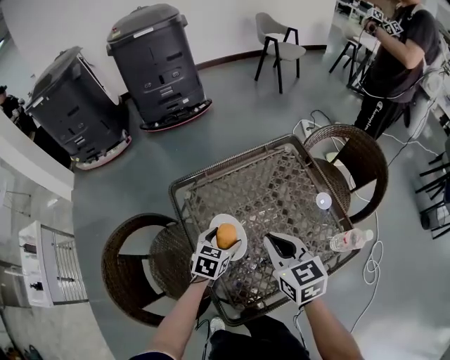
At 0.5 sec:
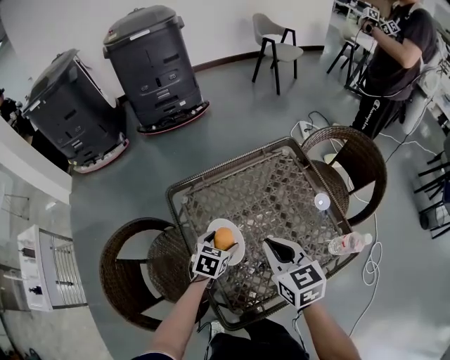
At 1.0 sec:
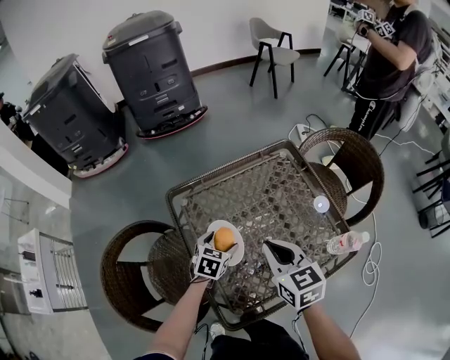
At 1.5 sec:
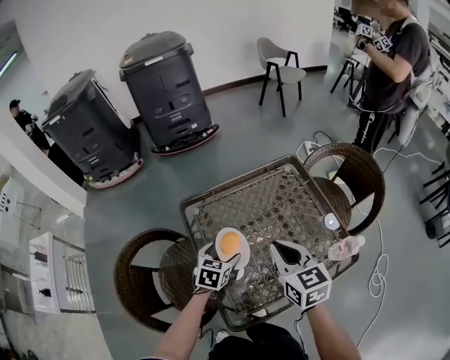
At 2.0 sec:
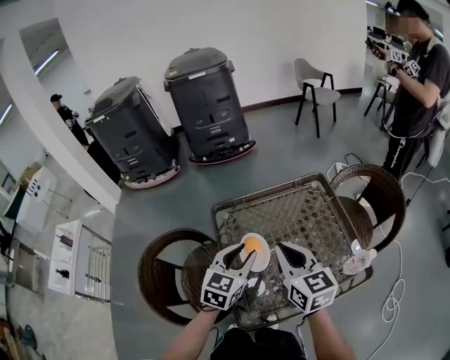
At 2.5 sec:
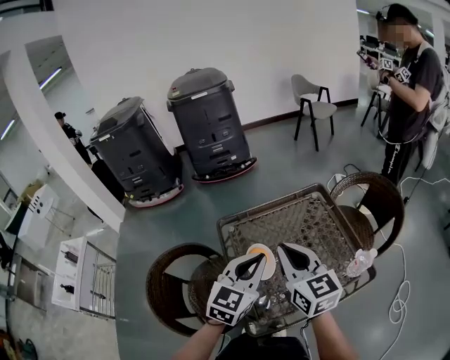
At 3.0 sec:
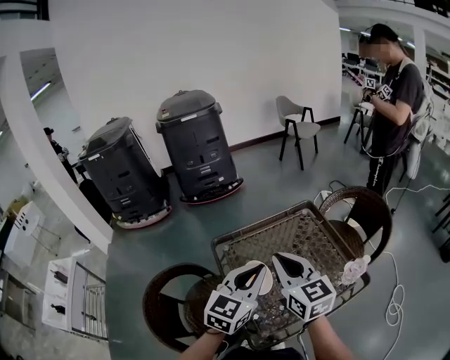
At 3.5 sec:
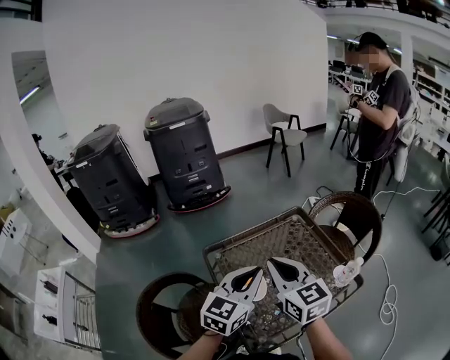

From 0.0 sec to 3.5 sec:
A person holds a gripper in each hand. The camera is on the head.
From 0.0 sec to 2.0 sec: The right gripper travels upward by about 10 cm; the left gripper moves upward, some 20 cm, swivels approximately 20 degrees, and closes up.
From 2.0 sec to 3.5 sec: The left gripper moves upward, about 10 cm, changes its angle by approximately 20 degrees, and closes up. The right gripper heads upward, covering approximately 10 cm.

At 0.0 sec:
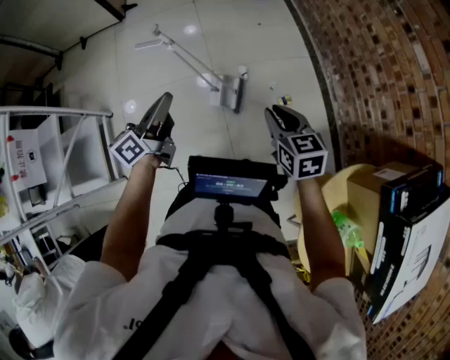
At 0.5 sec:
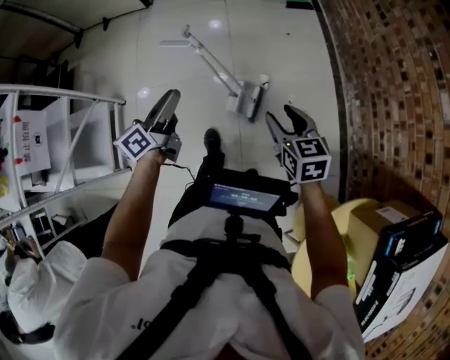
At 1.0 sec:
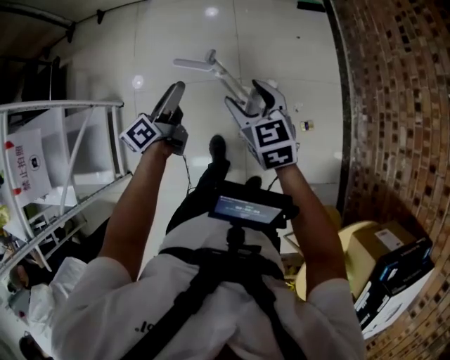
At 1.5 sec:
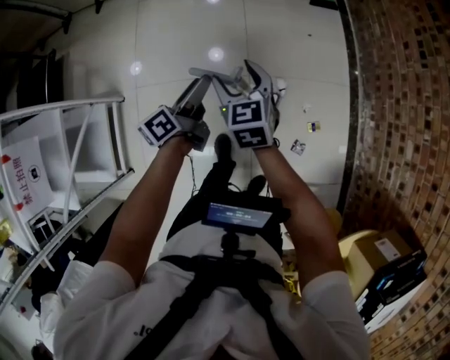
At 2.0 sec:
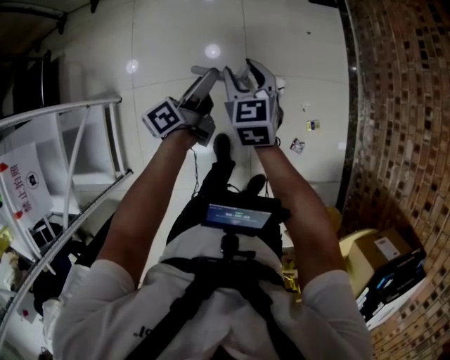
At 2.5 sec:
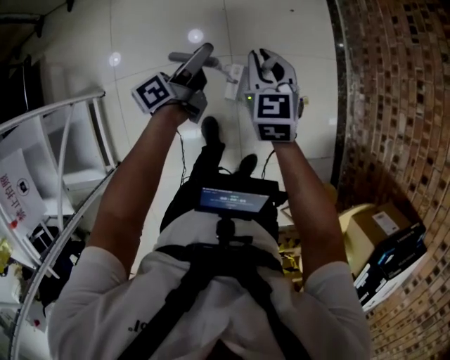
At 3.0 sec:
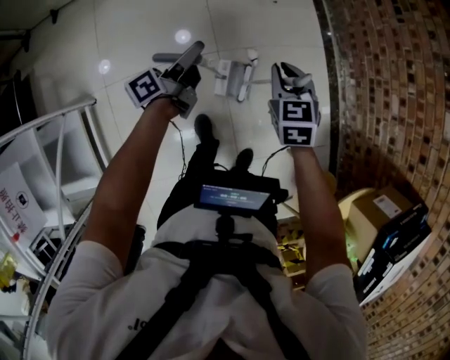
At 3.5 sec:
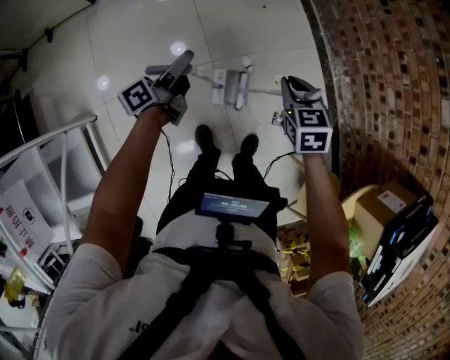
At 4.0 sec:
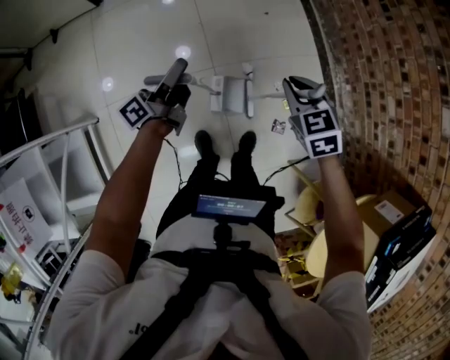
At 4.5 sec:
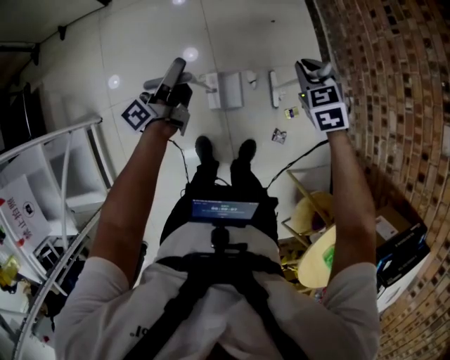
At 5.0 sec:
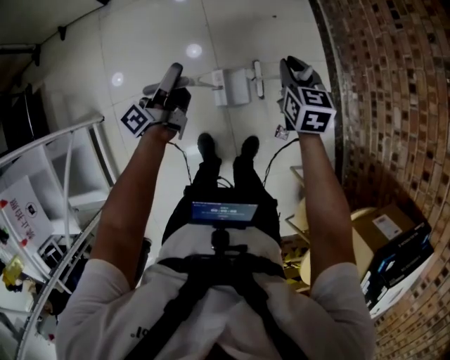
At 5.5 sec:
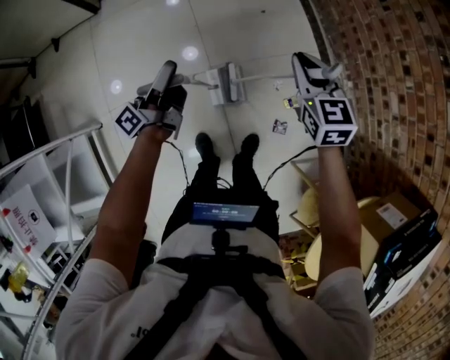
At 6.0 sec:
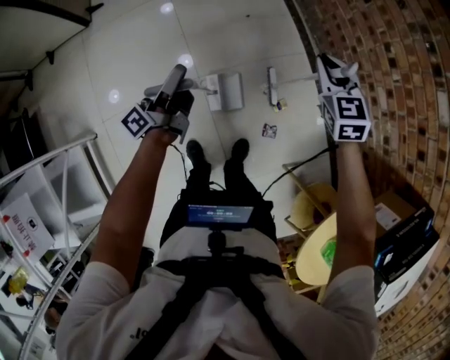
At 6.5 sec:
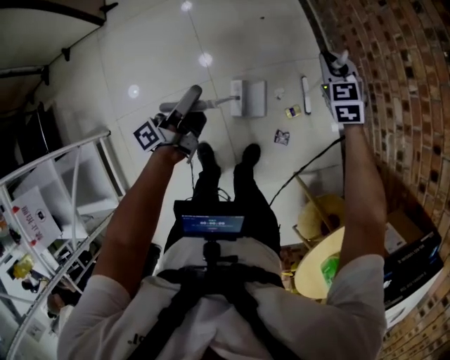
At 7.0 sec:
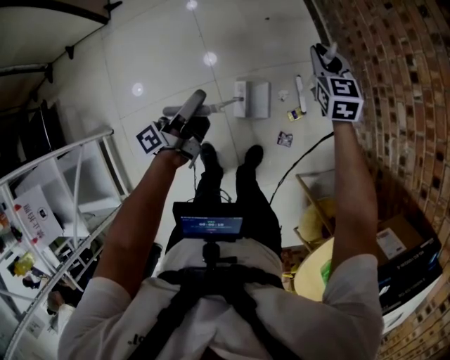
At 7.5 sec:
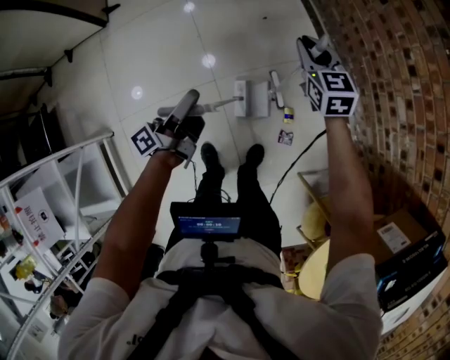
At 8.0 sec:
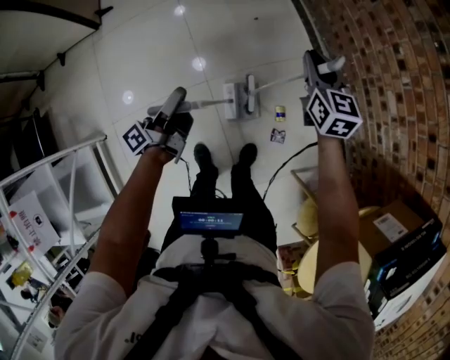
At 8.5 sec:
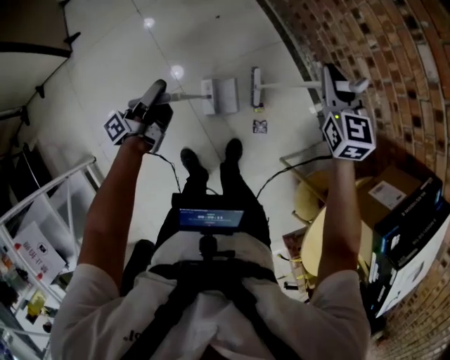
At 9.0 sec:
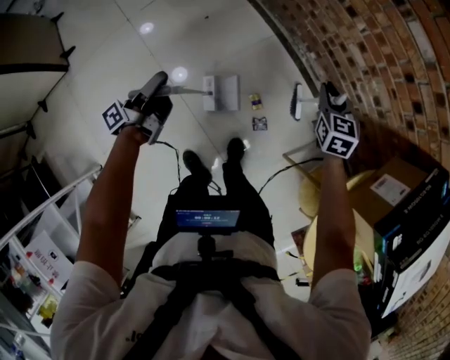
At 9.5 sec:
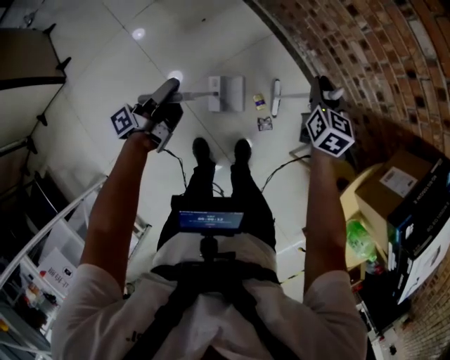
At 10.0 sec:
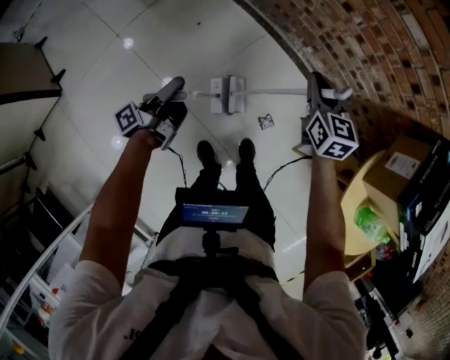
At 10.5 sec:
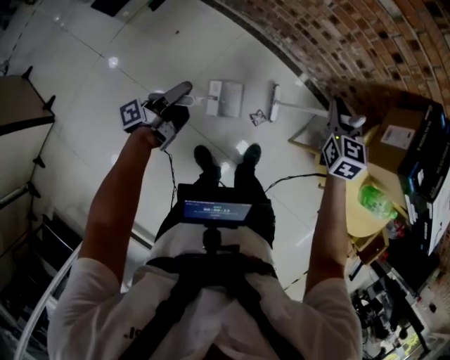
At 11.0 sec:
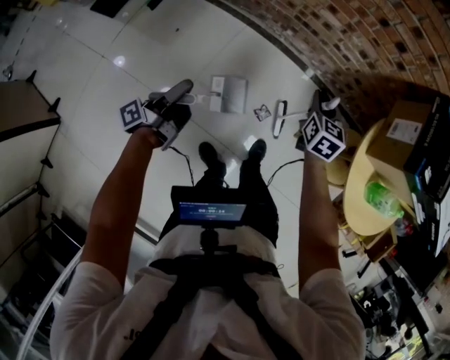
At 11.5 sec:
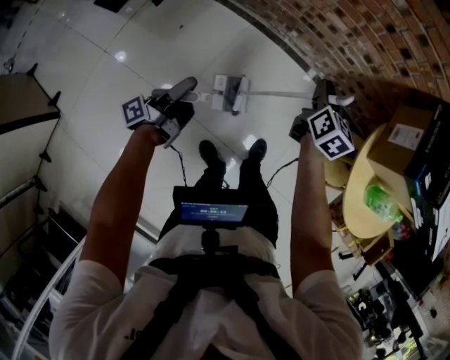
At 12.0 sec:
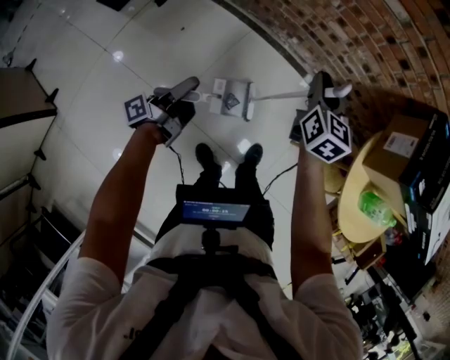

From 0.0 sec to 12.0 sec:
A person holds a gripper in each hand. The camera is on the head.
From 0.0 sec to 2.0 sec: The right gripper goes some 40 cm forward and to the left, and opens and closes again. The left gripper is displaced forward by about 25 cm, swivels approximately 30 degrees, and opens.
From 2.0 sec to 4.0 sec: The right gripper heads to the right, covering about 25 cm, and closes its fingers, while the left gripper moves to the right, roughly 5 cm, and closes its fingers.
From 4.0 sec to 6.0 sec: The left gripper heads to the right, covering approximately 10 cm. Meanwhile the right gripper shifts about 20 cm to the right and forward.
From 6.0 sec to 8.0 sec: The left gripper changes place by about 5 cm. The right gripper travels downward and back again, some 10 cm each way, and rotates approximately 30 degrees.
From 8.0 sec to 10.0 sec: The left gripper changes place by approximately 15 cm, and changes its angle by roughly 30 degrees; the right gripper goes up and down, some 10 cm each way, reversing 2 times, and swivels about 30 degrees.
From 10.0 sec to 12.0 sec: The two grippers go approximately 5 cm to the right. The right gripper changes its angle by some 20 degrees.

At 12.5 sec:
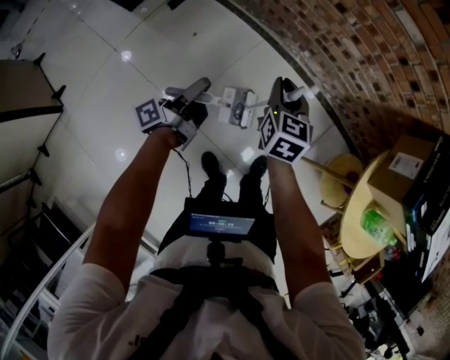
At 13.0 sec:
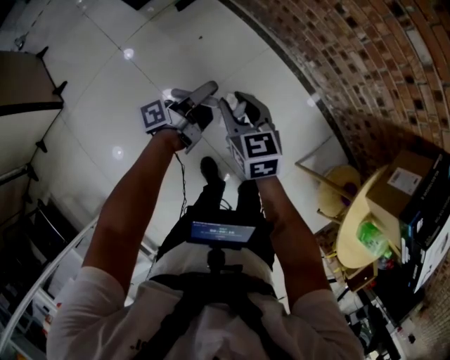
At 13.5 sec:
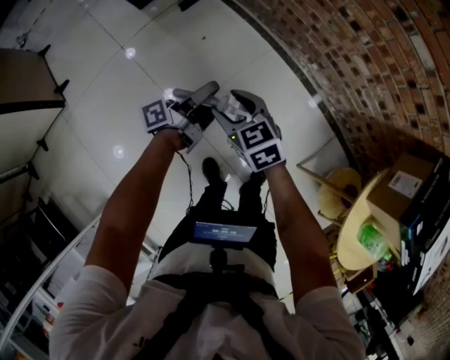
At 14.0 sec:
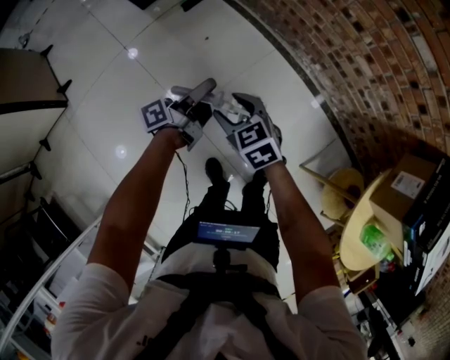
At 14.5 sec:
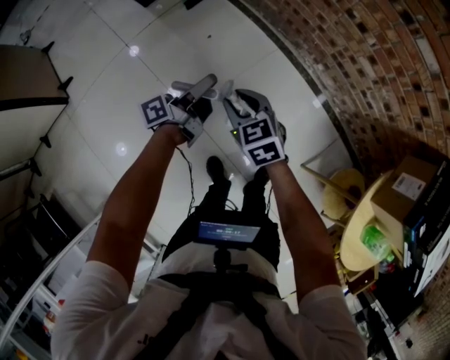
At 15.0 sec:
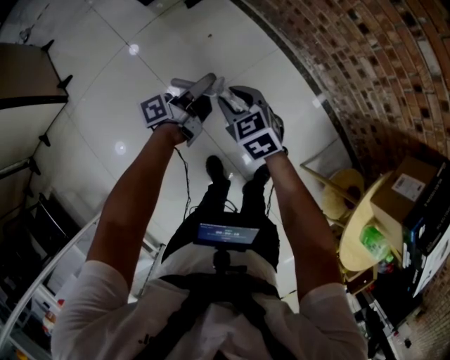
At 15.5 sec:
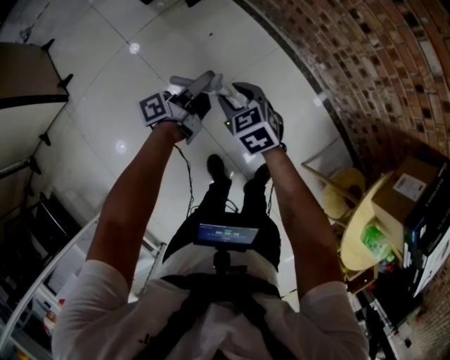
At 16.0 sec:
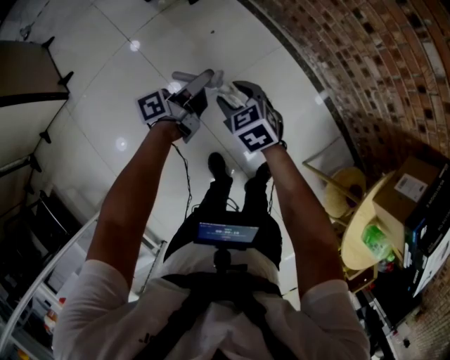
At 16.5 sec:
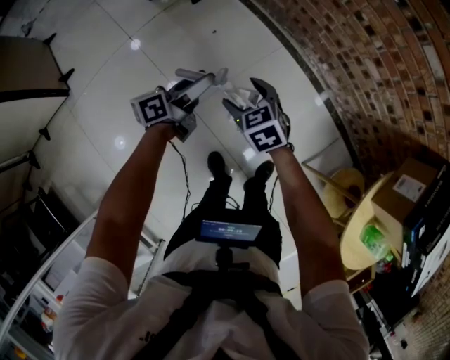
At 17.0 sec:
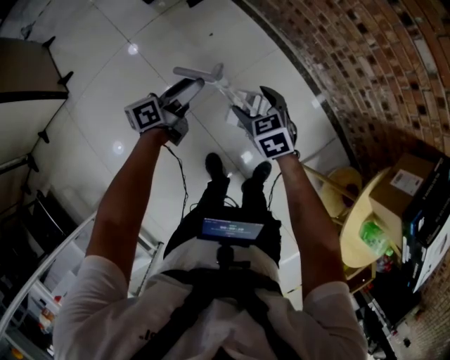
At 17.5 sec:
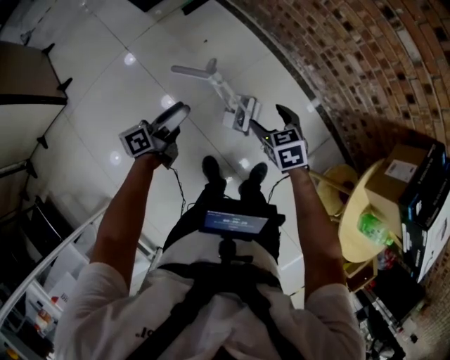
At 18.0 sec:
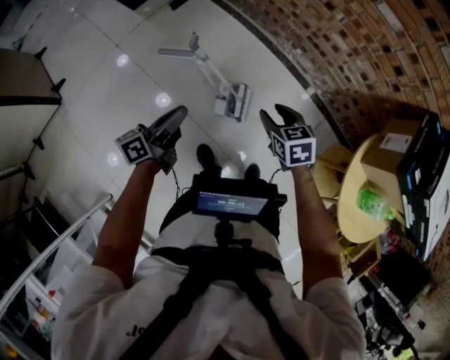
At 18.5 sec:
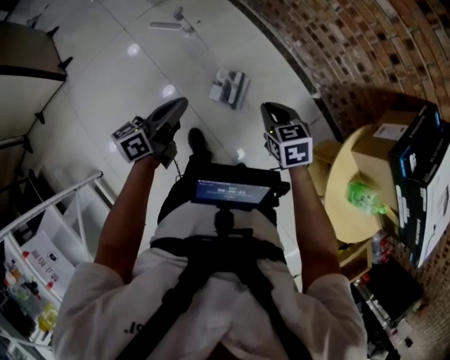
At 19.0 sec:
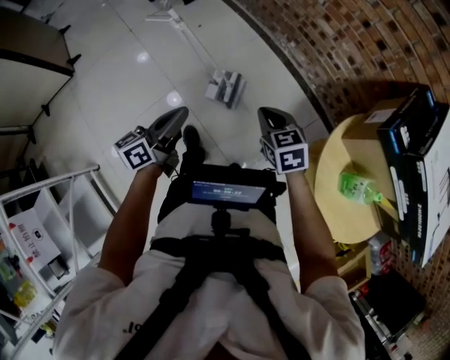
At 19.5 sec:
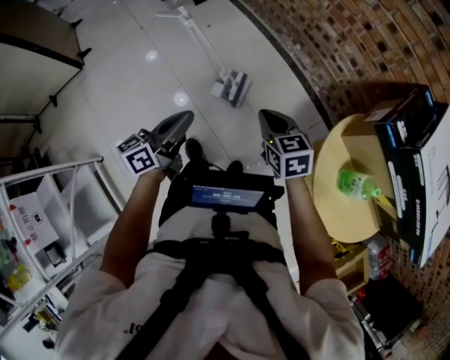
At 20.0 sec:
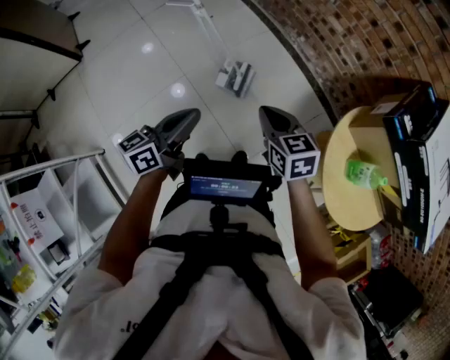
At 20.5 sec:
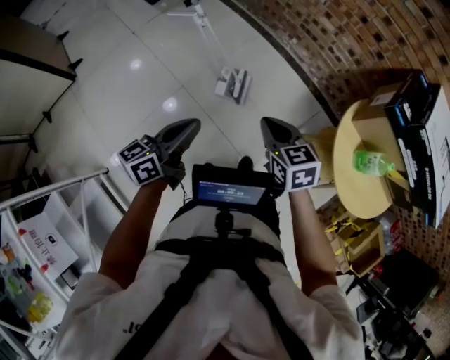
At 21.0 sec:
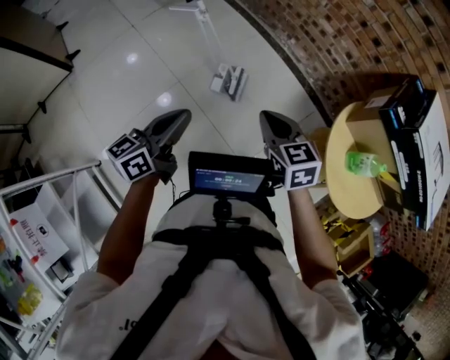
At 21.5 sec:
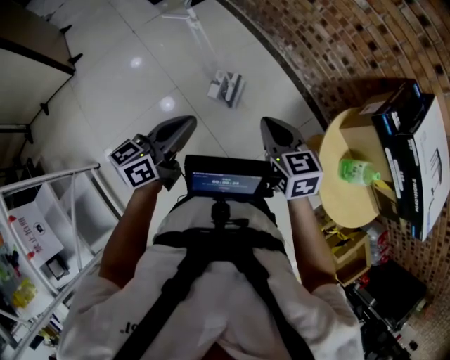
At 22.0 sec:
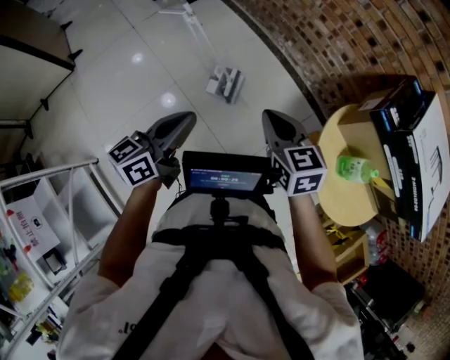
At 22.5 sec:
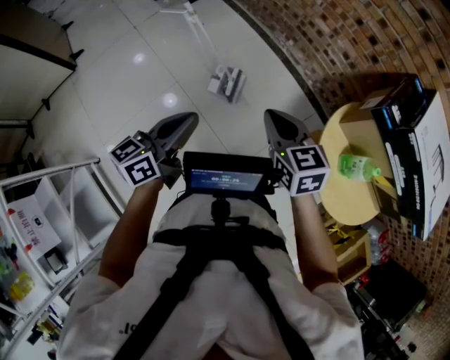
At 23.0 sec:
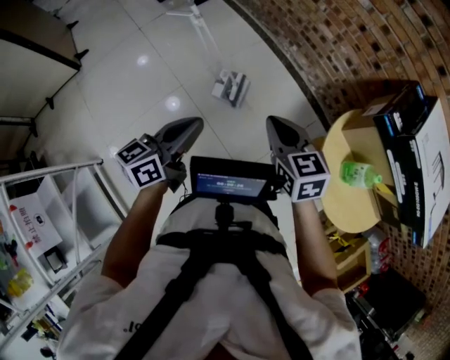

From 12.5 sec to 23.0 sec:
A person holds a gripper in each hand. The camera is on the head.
From 12.5 sec to 14.5 sec: The right gripper goes roughly 20 cm to the left, and changes its angle by roughly 50 degrees; the left gripper moves some 5 cm.
From 14.5 sec to 16.5 sec: The left gripper opens its fingers; the right gripper opens.
From 16.5 sec to 19.0 sec: The right gripper is displaced to the right and backward by roughly 40 cm, and closes, while the left gripper heads backward and to the right, covering roughly 40 cm, and closes its fingers.
From 19.0 sec to 21.0 sec: The grippers both shift backward, upward and to the left by roughly 15 cm.
From 21.0 sec to 23.0 sec: Both grippers move to the right, some 5 cm.
